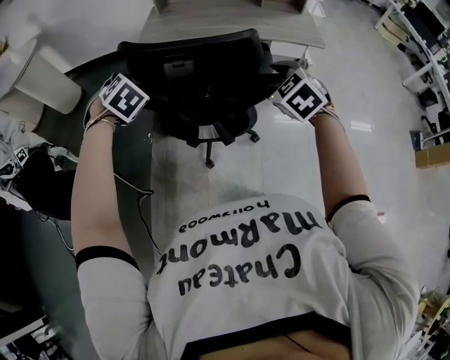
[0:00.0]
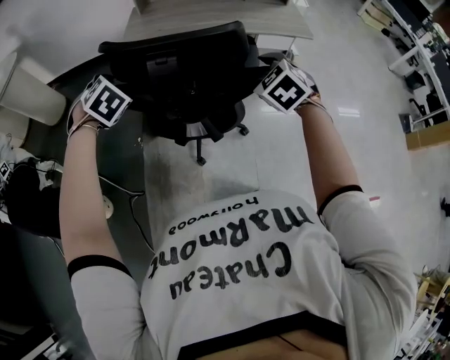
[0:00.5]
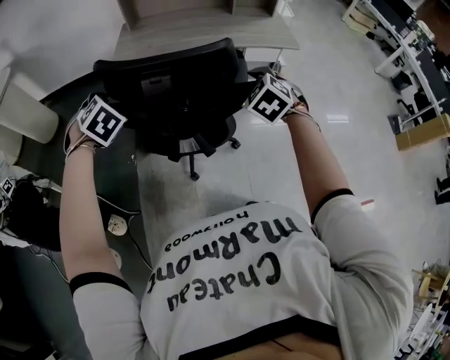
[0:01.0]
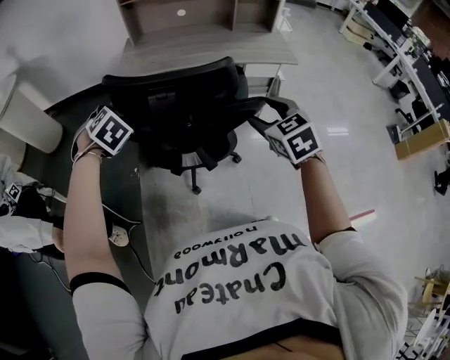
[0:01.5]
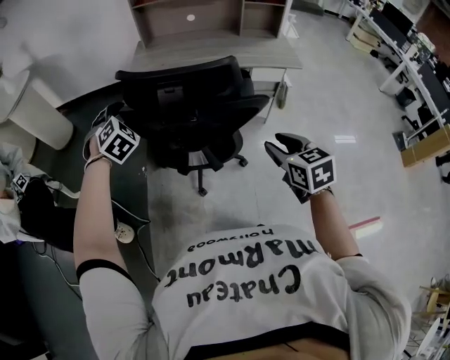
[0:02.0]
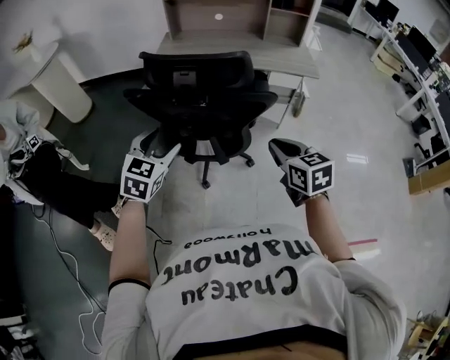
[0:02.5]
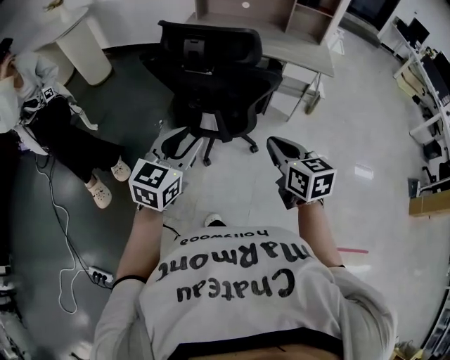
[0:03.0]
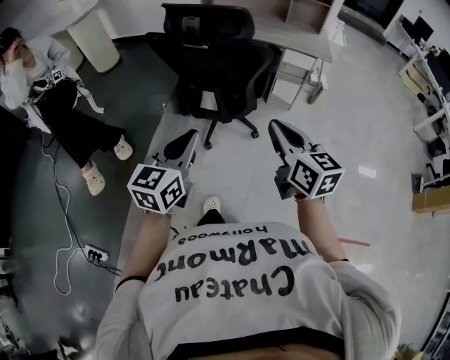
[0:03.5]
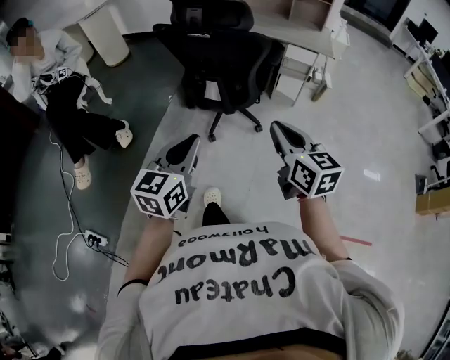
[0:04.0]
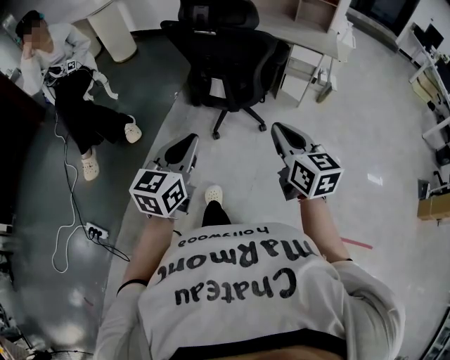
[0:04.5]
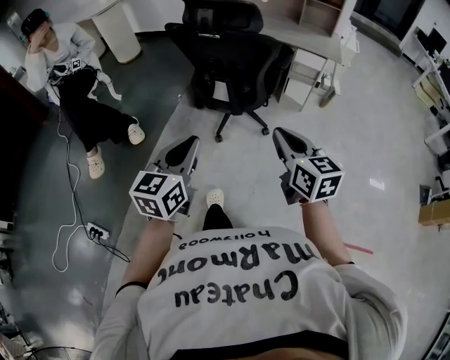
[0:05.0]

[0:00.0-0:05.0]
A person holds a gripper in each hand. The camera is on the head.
0:00.0 to 0:02.5: The grippers both shift backward by about 20 cm. The right gripper rotates roughly 40 degrees, and closes up, while the left gripper rotates roughly 40 degrees.
0:02.5 to 0:05.0: The two grippers go approximately 35 cm backward. The right gripper changes its angle by about 20 degrees. The left gripper turns by some 30 degrees, and closes up.

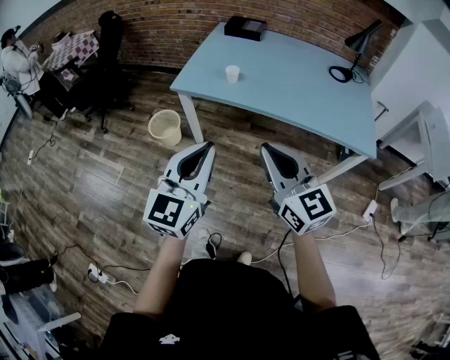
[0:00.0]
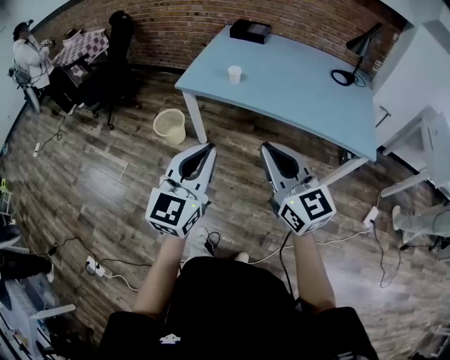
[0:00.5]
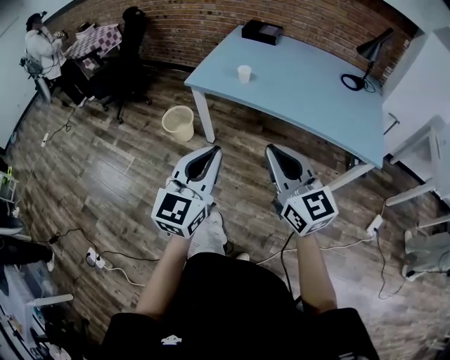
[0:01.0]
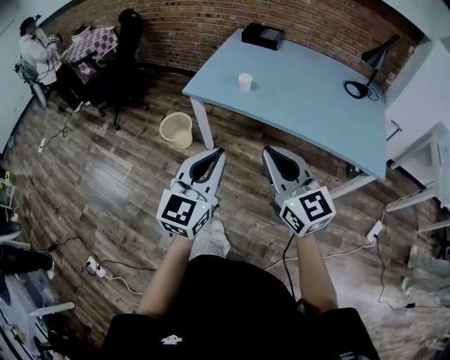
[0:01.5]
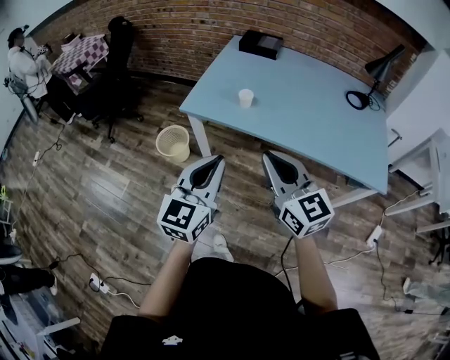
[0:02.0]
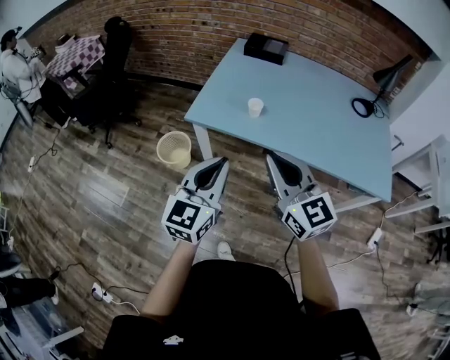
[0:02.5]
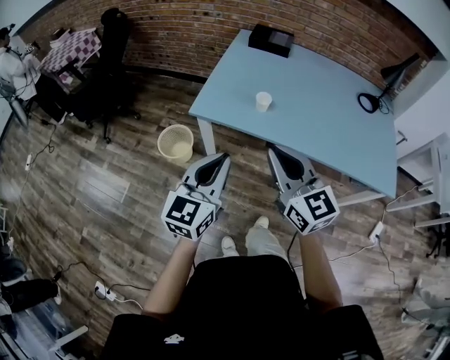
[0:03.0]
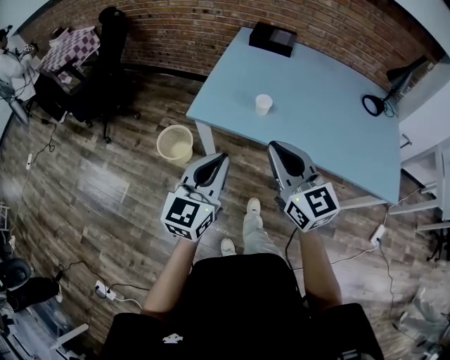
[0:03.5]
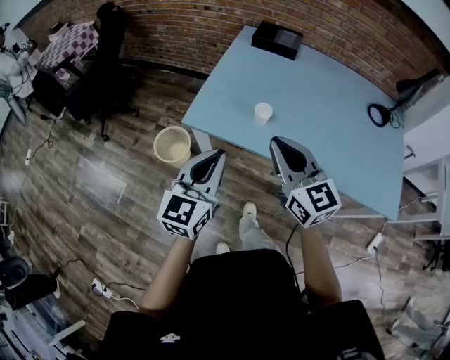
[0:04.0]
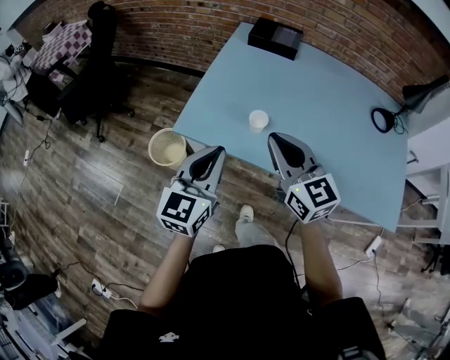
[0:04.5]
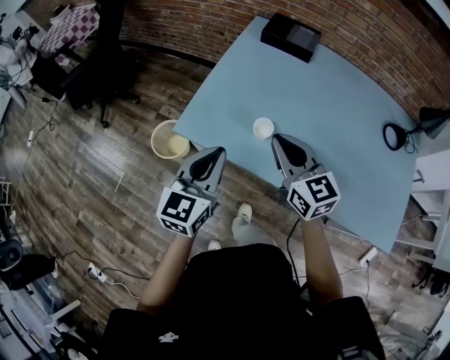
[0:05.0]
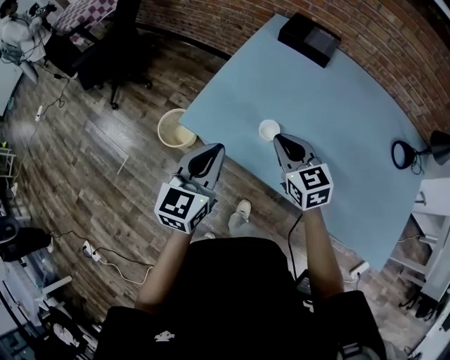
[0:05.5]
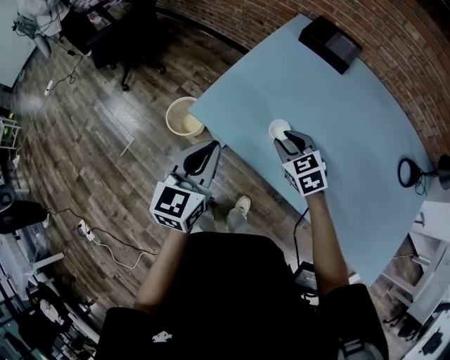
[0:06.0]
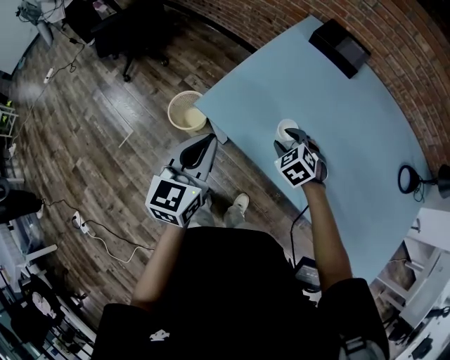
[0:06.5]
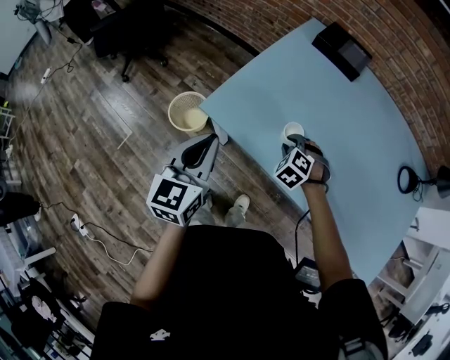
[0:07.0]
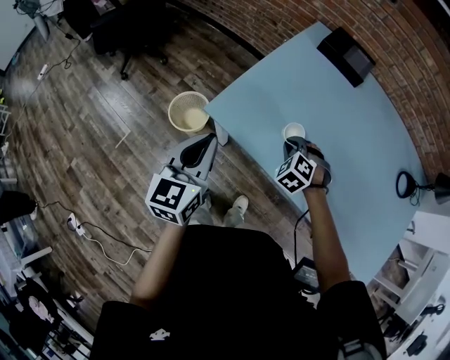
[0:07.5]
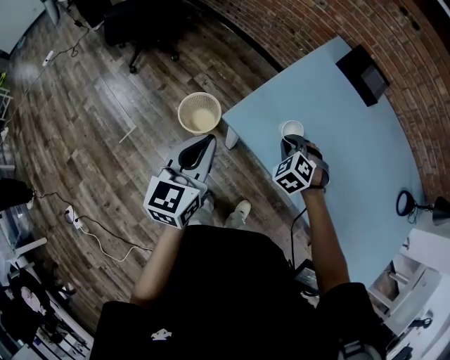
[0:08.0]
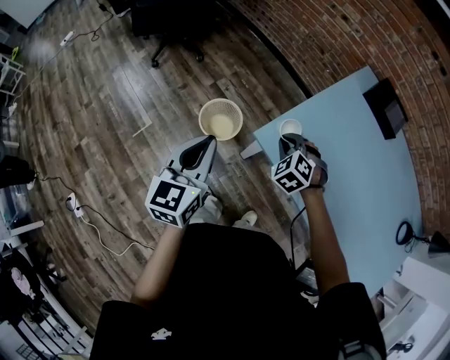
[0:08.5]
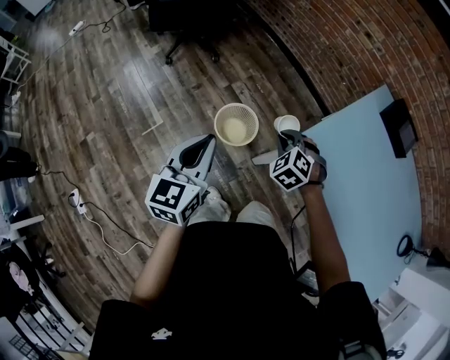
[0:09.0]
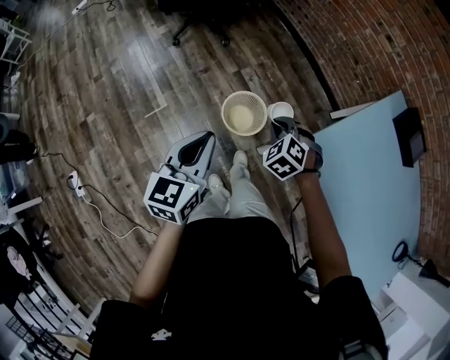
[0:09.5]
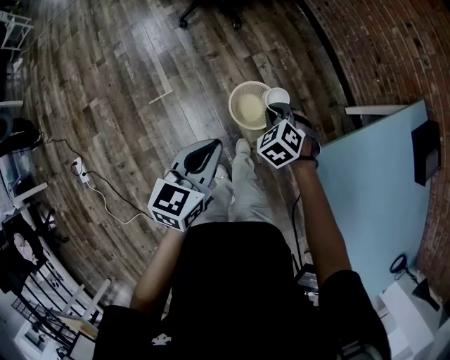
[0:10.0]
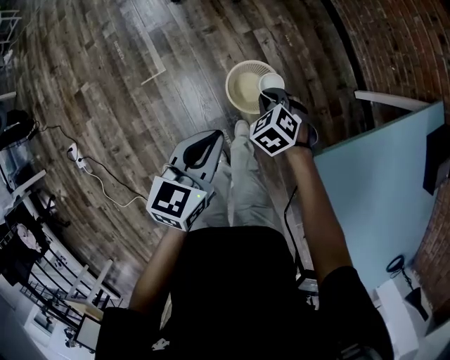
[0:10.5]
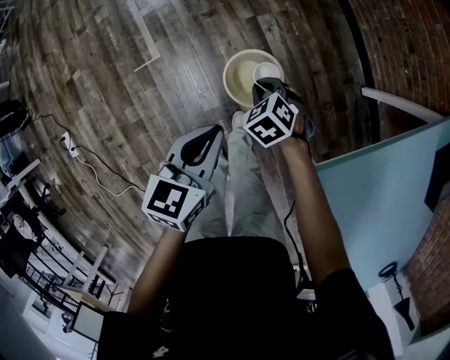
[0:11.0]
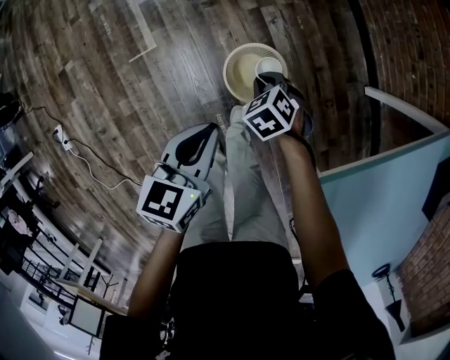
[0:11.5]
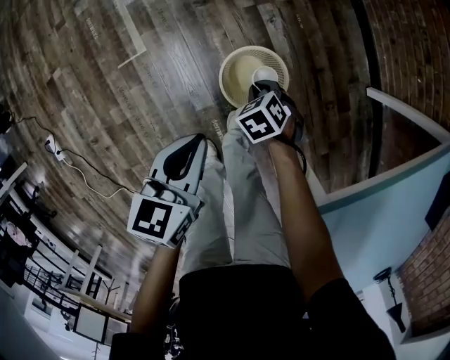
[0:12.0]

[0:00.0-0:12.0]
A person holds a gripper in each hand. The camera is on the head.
0:00.0 to 0:02.0: The grippers both shift forward by approximately 15 cm.
0:02.0 to 0:04.0: The grippers both shift forward by about 20 cm.
0:04.0 to 0:06.0: The right gripper heads downward and forward, covering roughly 30 cm, tips its fingers downward by roughly 40 degrees, and opens. The left gripper goes roughly 15 cm forward and downward, and swivels some 20 degrees.
0:06.0 to 0:08.0: The left gripper travels to the left by about 15 cm. The right gripper shifts roughly 15 cm to the left and downward, and turns by about 40 degrees.
0:08.0 to 0:10.0: The left gripper goes roughly 25 cm to the left and downward, and turns by some 20 degrees; the right gripper is displaced to the left and forward by about 40 cm, and turns by roughly 20 degrees.
0:10.0 to 0:12.0: The grippers both shift downward by some 25 cm. The right gripper swivels approximately 20 degrees.

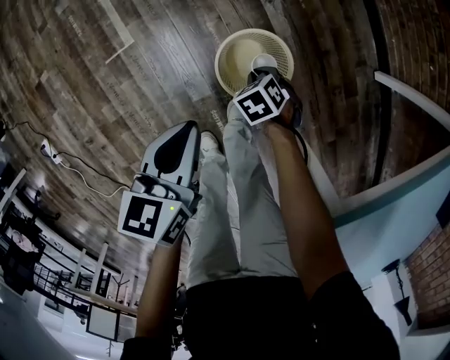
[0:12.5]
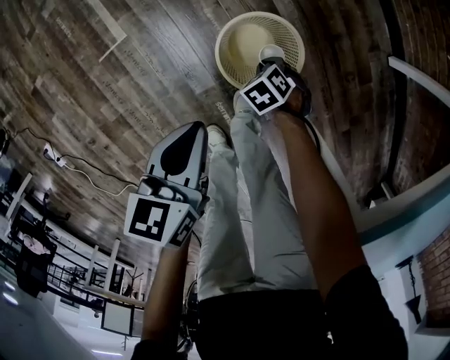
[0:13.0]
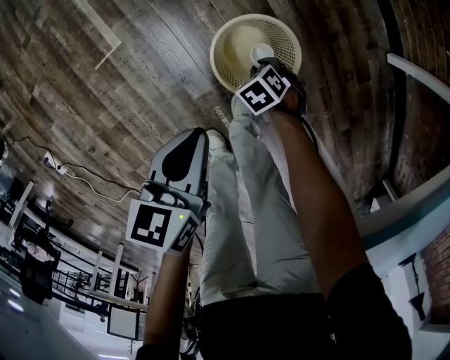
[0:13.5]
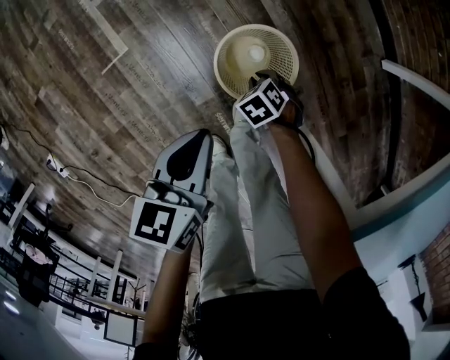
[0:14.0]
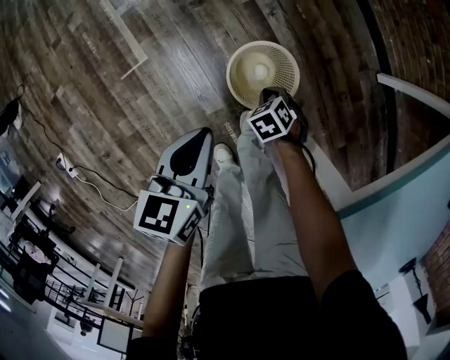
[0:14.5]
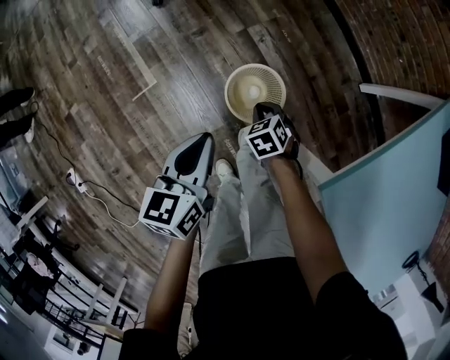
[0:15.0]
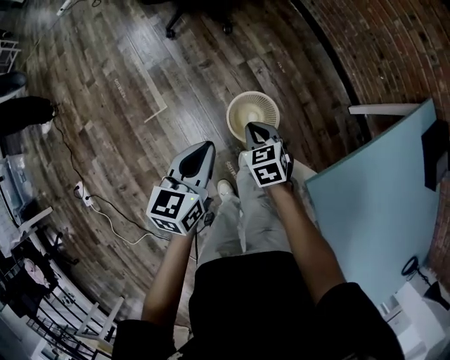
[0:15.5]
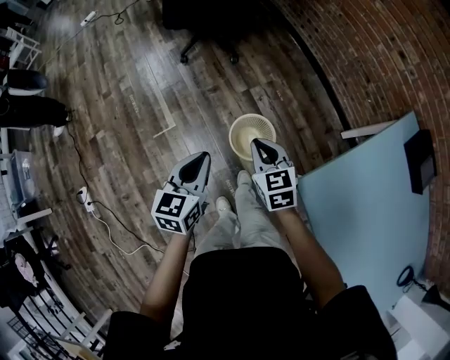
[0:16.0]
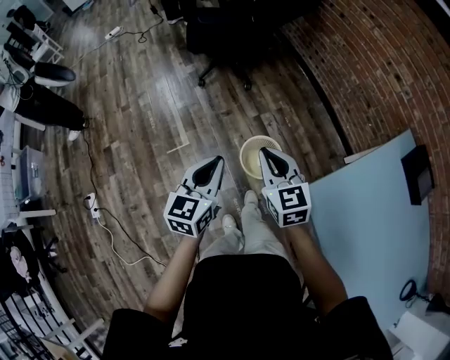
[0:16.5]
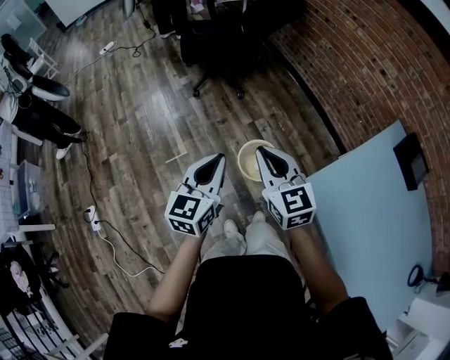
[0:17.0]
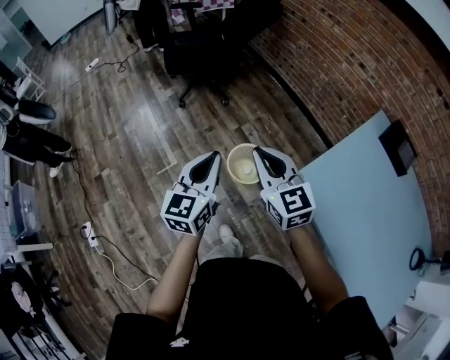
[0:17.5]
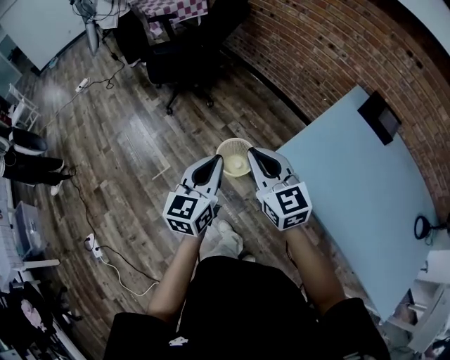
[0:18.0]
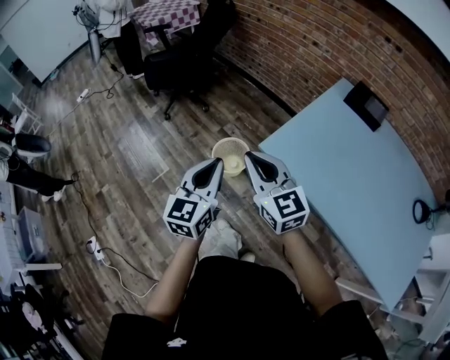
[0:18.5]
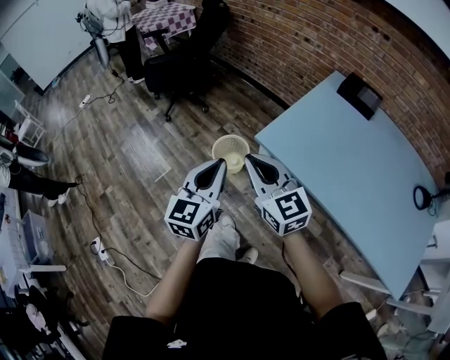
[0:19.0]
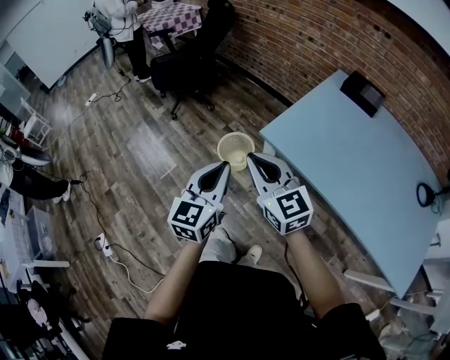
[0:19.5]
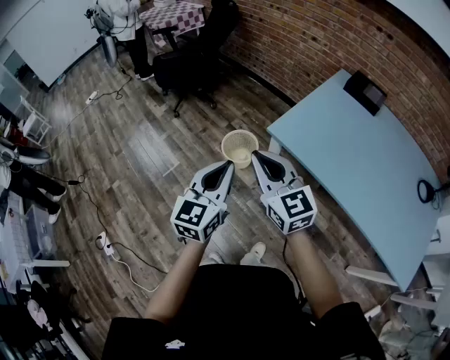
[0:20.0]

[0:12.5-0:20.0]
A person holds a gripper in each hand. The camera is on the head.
0:12.5 to 0:14.5: The right gripper goes downward and returns, some 10 cm each way. The left gripper reaches roughly 5 cm downward, then returns.
0:14.5 to 0:16.5: The right gripper shifts roughly 60 cm upward, and tips its fingers upward by some 60 degrees. The left gripper moves upward, about 30 cm, and rotates about 30 degrees.
0:16.5 to 0:18.0: The left gripper moves backward, upward and to the right, some 15 cm; the right gripper moves backward and upward, about 20 cm.
0:18.0 to 0:20.0: The two grippers go some 20 cm backward.

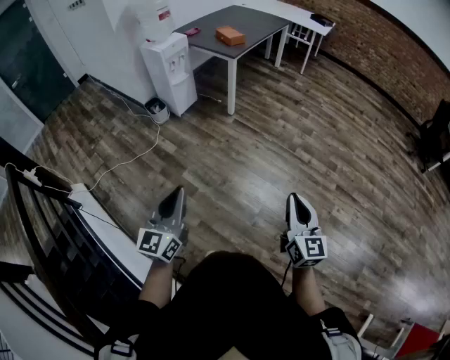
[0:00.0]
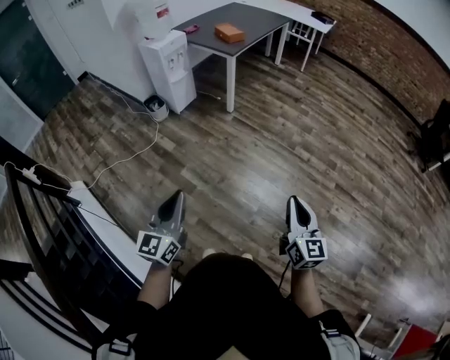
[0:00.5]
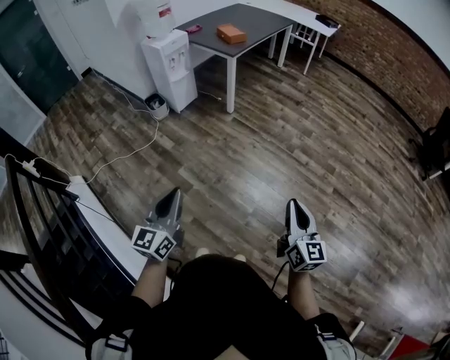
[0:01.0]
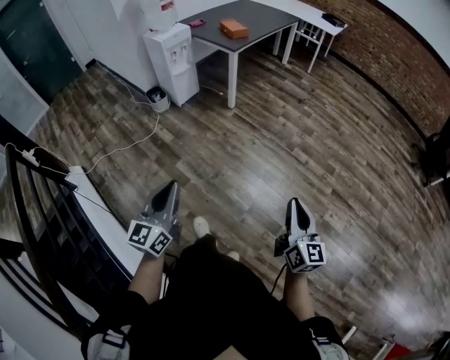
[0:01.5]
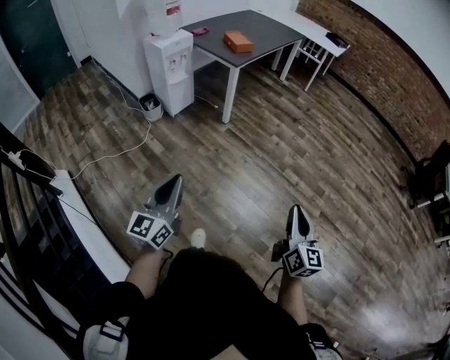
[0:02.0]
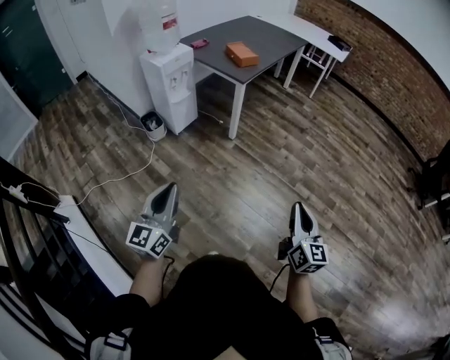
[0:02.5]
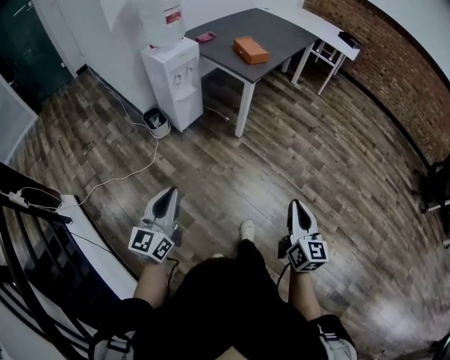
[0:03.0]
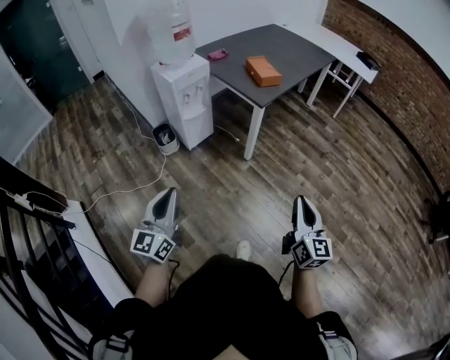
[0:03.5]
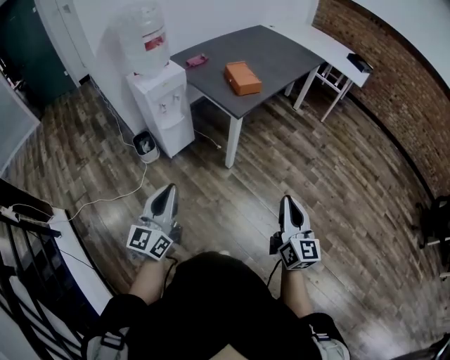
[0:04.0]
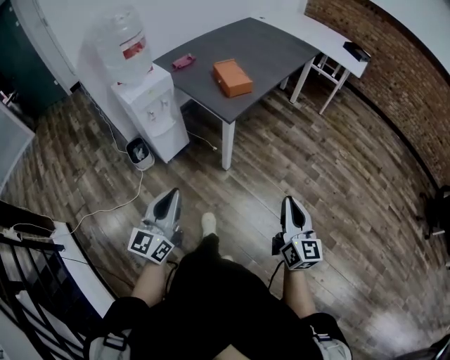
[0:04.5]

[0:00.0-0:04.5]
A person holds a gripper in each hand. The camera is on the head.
0:00.0 to 0:02.0: The right gripper goes about 15 cm forward and to the right, while the left gripper moves forward, some 10 cm.
0:02.0 to 0:04.5: Both grippers are carried forward, roughly 40 cm.
